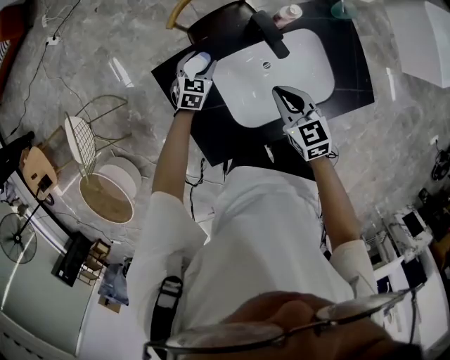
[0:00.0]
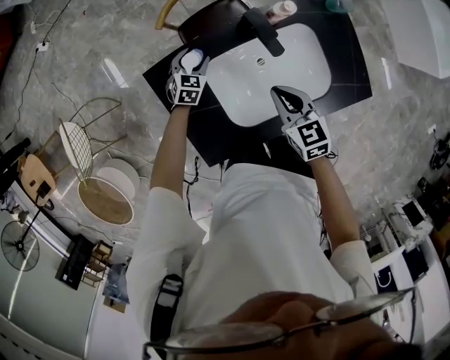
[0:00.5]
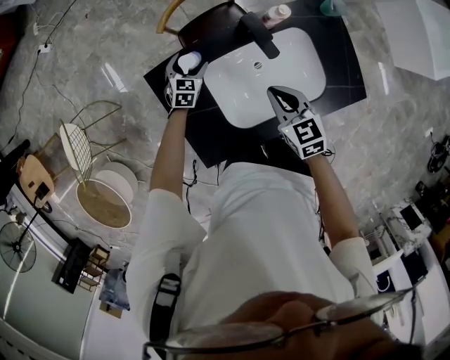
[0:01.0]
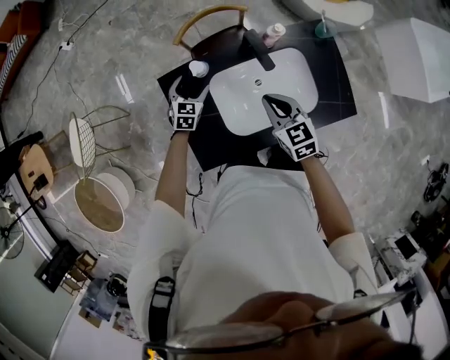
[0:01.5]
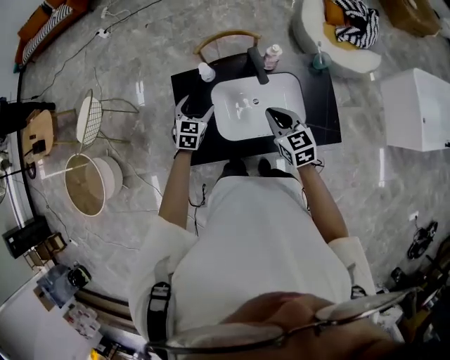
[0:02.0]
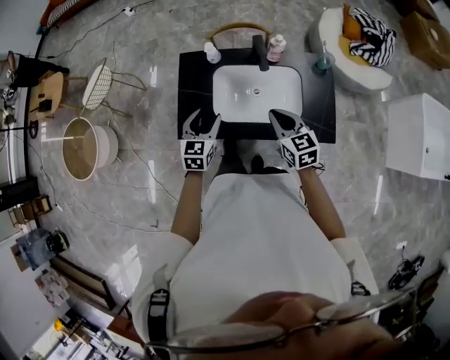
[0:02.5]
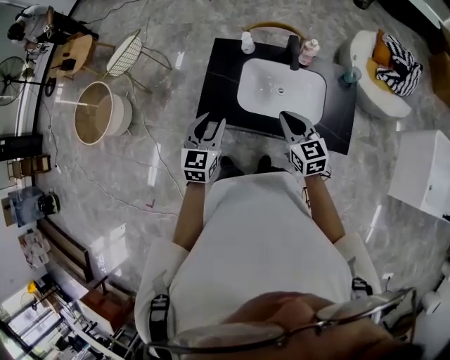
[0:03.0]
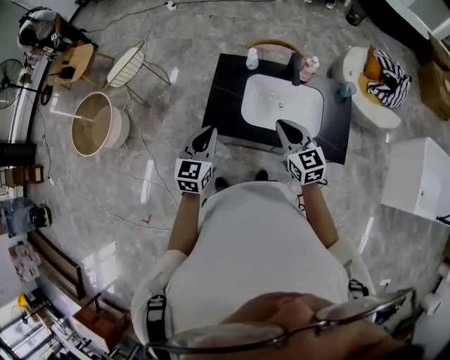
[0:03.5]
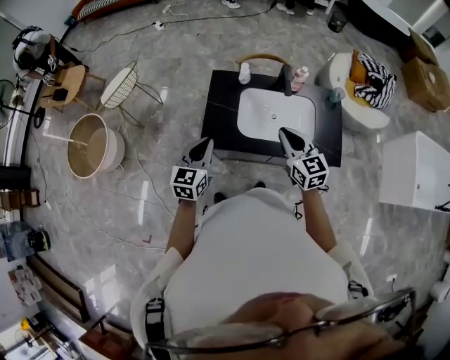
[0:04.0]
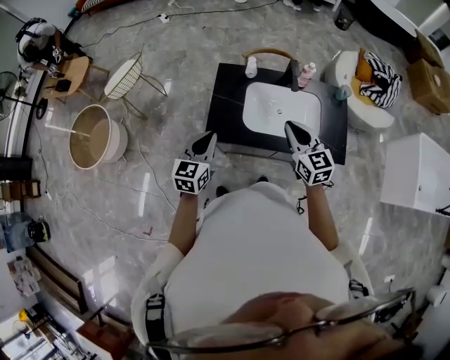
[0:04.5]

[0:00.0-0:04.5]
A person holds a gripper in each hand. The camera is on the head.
0:00.0 to 0:02.0: The left gripper goes some 20 cm upward and backward, and swivels about 20 degrees. The right gripper heads upward and backward, covering roughly 10 cm.
0:02.0 to 0:04.5: The left gripper moves backward, upward and to the left, roughly 35 cm, swivels approximately 30 degrees, and closes up. The right gripper heads backward, upward and to the left, covering approximately 20 cm.

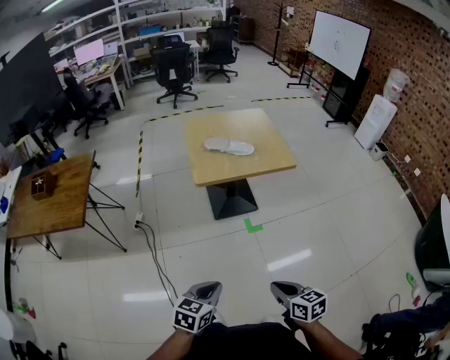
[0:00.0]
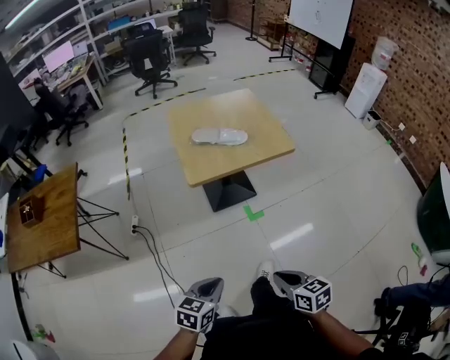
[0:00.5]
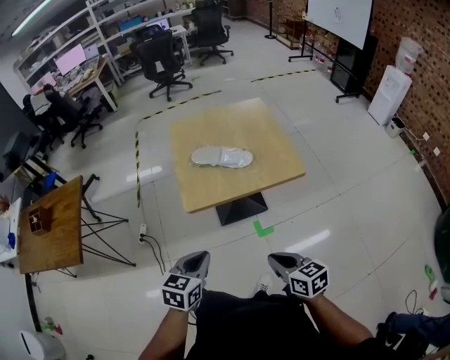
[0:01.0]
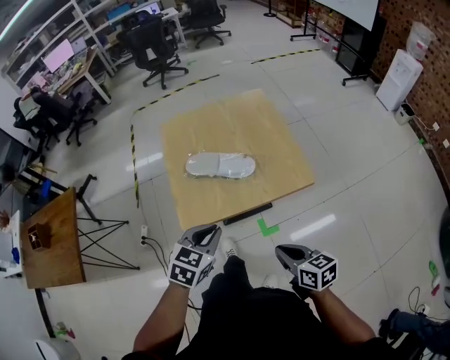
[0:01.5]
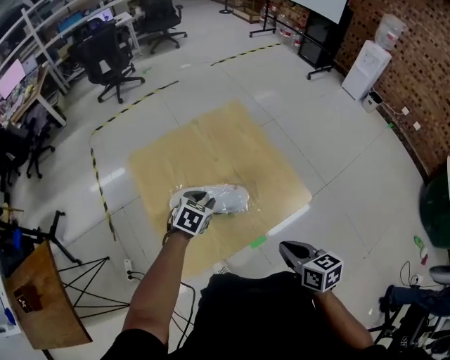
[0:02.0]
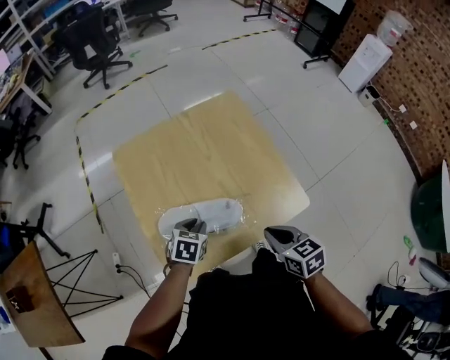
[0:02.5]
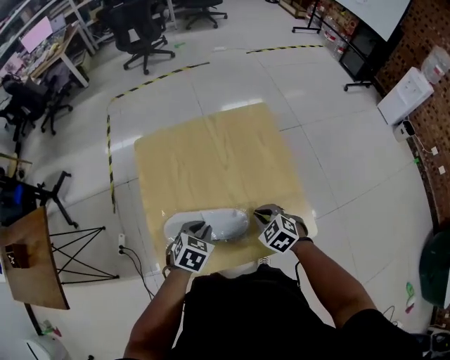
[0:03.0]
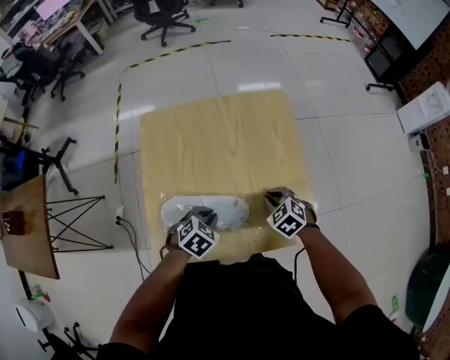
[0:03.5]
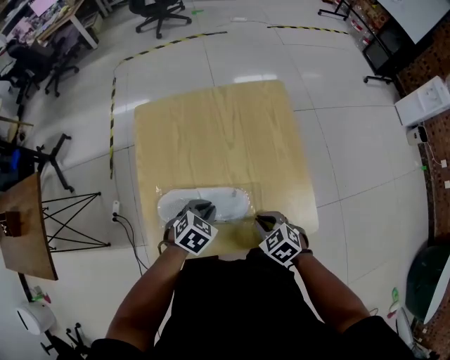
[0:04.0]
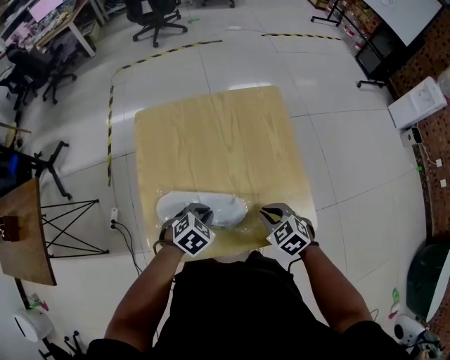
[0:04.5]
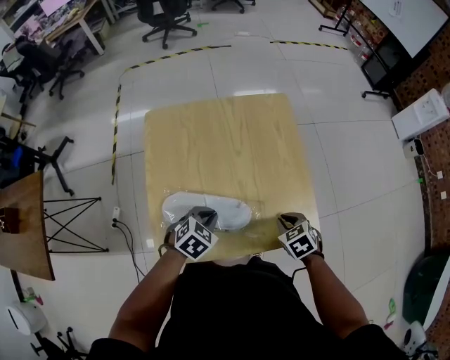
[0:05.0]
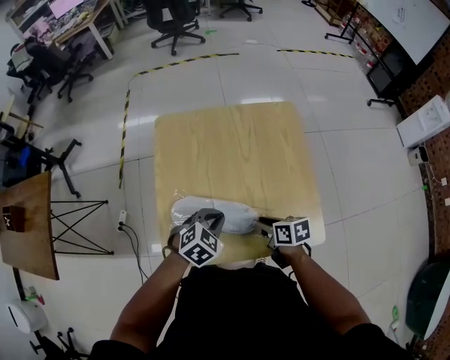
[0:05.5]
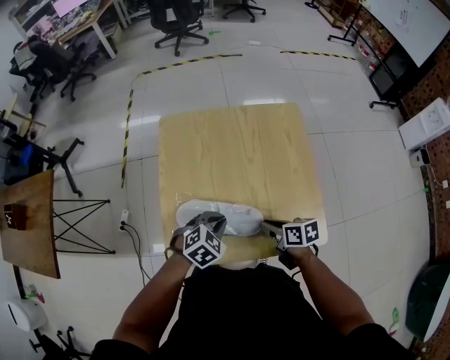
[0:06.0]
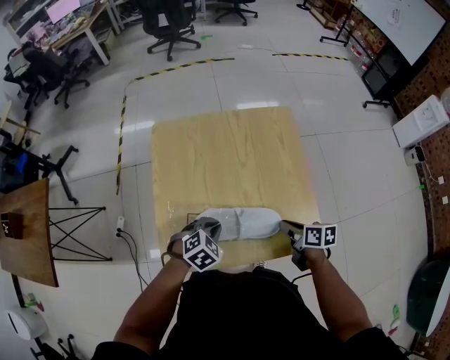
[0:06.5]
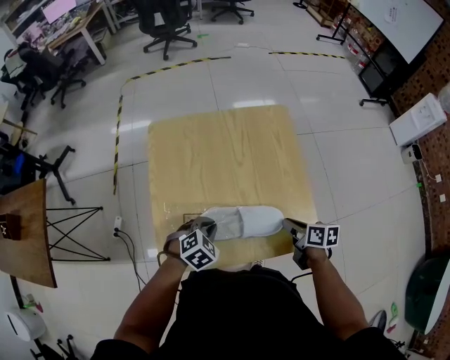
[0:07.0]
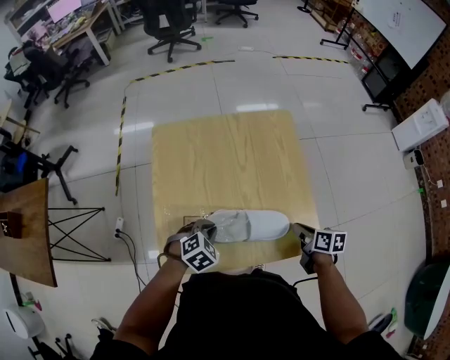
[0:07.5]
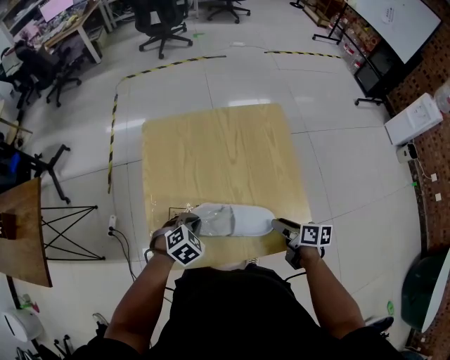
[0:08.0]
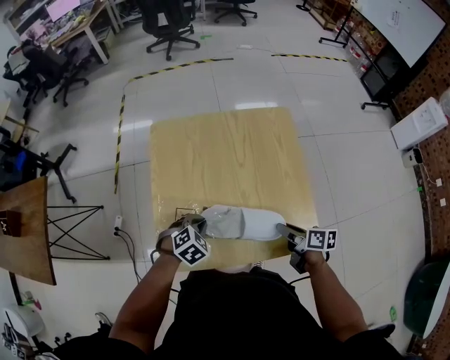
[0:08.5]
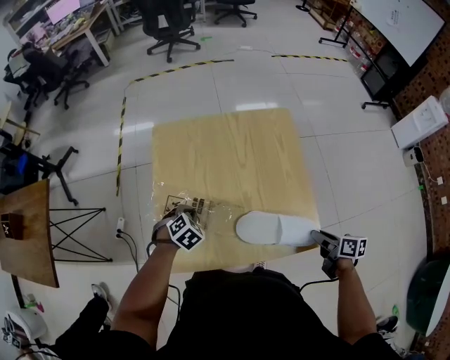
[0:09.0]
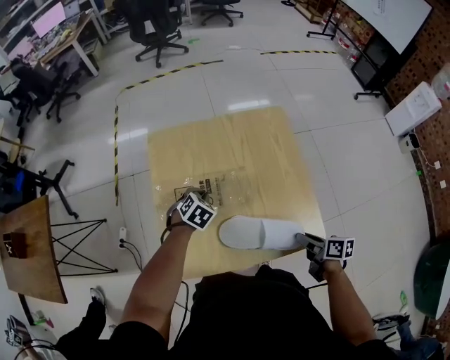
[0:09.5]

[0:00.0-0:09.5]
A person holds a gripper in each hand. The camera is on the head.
0:00.0 to 0:02.0: The pair of grippers is taken forward, roughly 60 cm. The left gripper changes its angle by some 30 degrees, and opens its fingers.
0:02.0 to 0:04.0: The left gripper moves downward, approximately 5 cm. Meanwhile the right gripper moves downward and forward, about 20 cm, and rolls counterclockwise, seen from behind, by some 50 degrees.
0:04.0 to 0:05.5: The right gripper reaches roughly 5 cm to the right, then returns, twists about 50 degrees clockwise, seen from behind, and opens its fingers. The left gripper moves upward, some 5 cm.
0:05.5 to 0:07.5: The left gripper moves some 5 cm, while the right gripper goes approximately 15 cm to the right, and closes up.
0:07.5 to 0:09.5: The right gripper swings left and right, approximately 10 cm each way, with 2 reversals, and opens. The left gripper heads forward, covering some 15 cm.

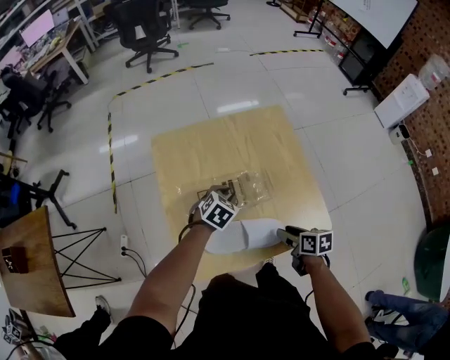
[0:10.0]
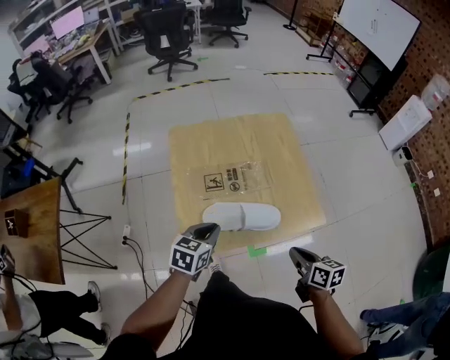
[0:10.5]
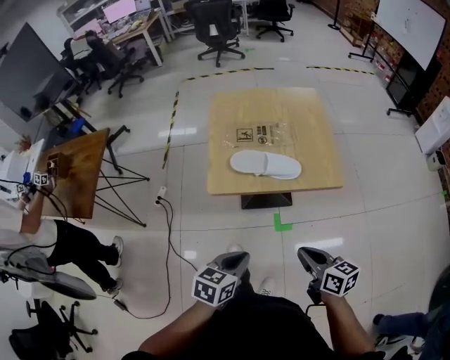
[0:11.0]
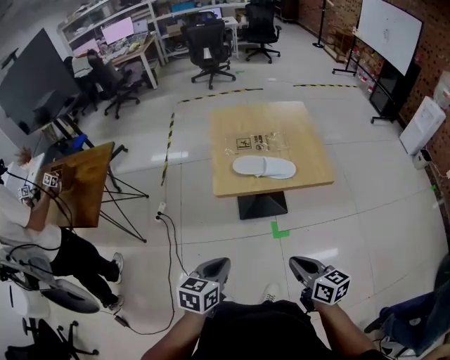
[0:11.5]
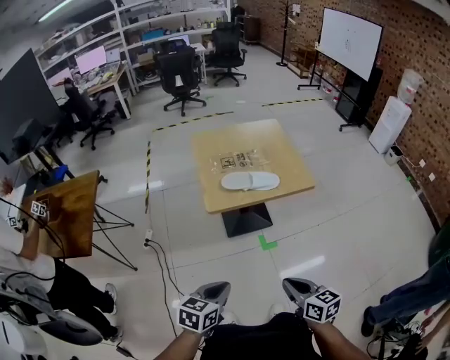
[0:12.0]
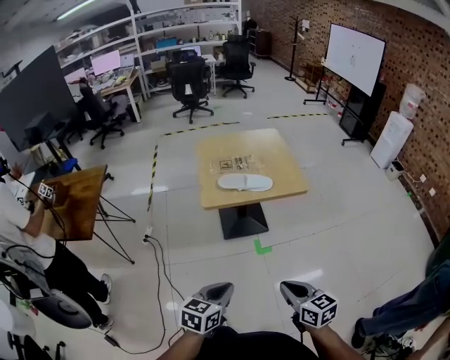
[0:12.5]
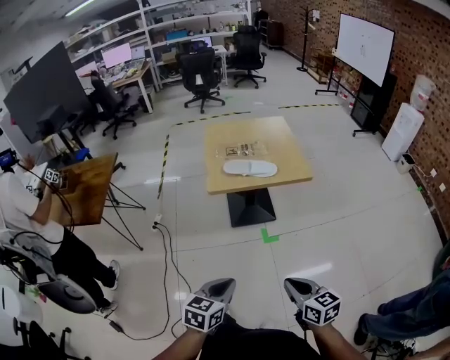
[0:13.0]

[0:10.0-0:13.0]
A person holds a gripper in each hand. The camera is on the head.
0:10.0 to 0:11.5: Both grippers are carried backward, about 50 cm. The right gripper goes approximately 20 cm upward, changes its angle by about 30 degrees, and closes up. The left gripper turns by about 40 degrees.
0:11.5 to 0:13.0: Both grippers travel together backward, some 20 cm.

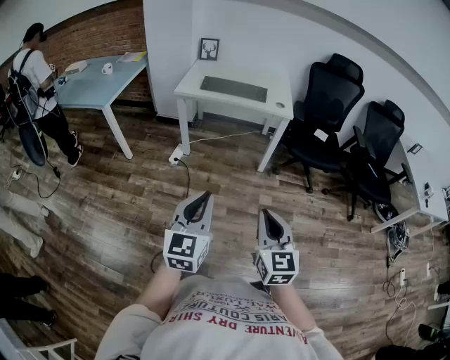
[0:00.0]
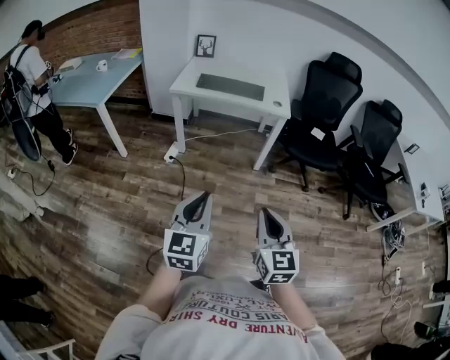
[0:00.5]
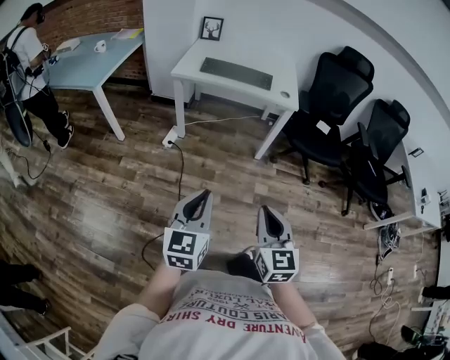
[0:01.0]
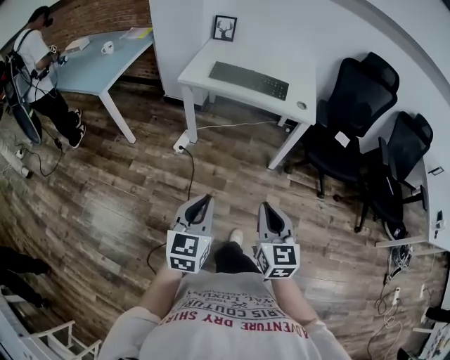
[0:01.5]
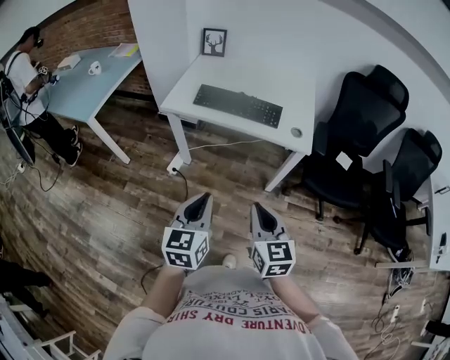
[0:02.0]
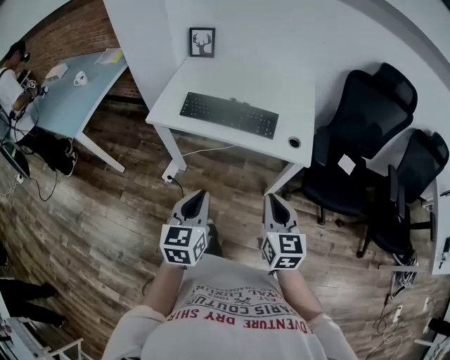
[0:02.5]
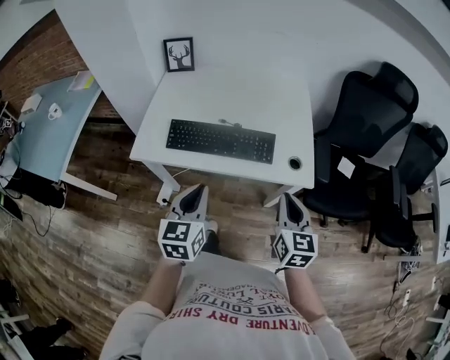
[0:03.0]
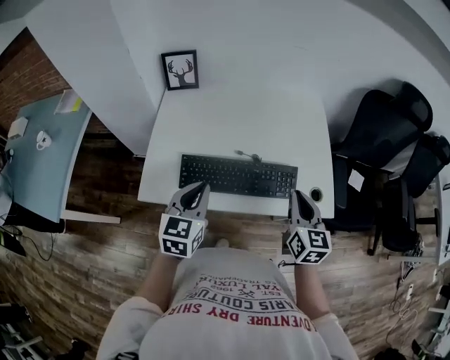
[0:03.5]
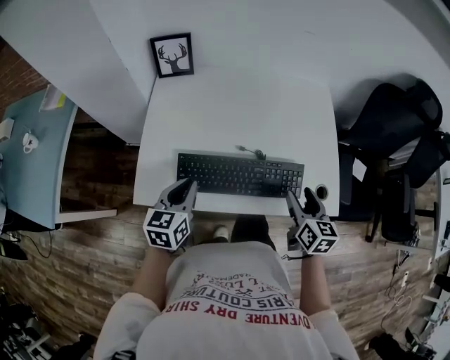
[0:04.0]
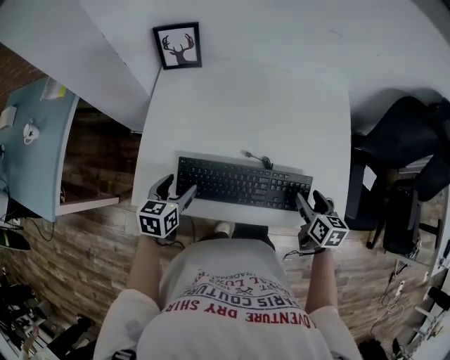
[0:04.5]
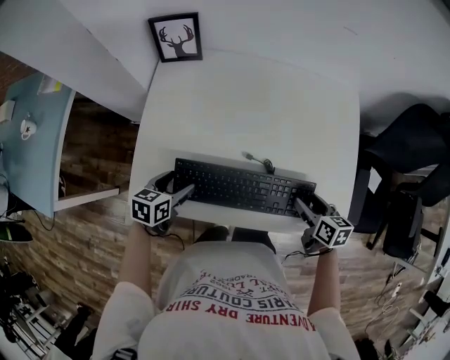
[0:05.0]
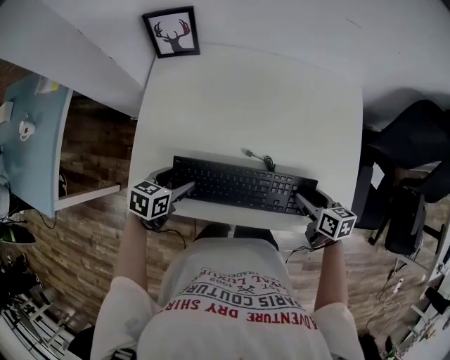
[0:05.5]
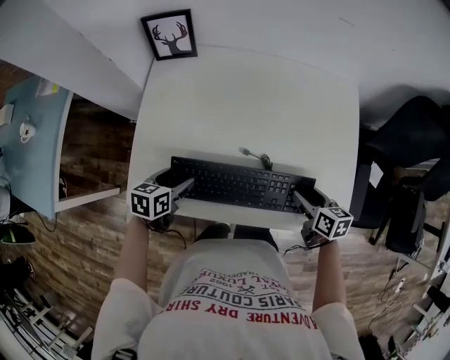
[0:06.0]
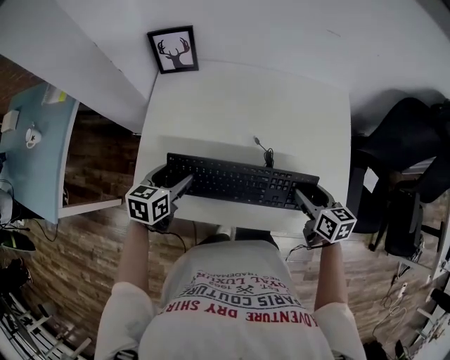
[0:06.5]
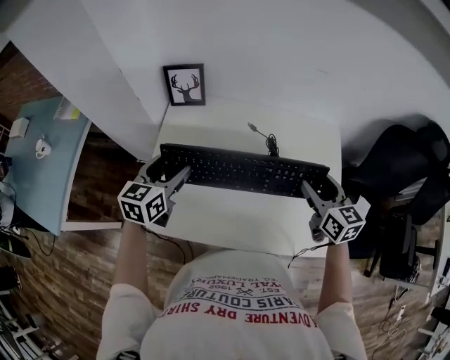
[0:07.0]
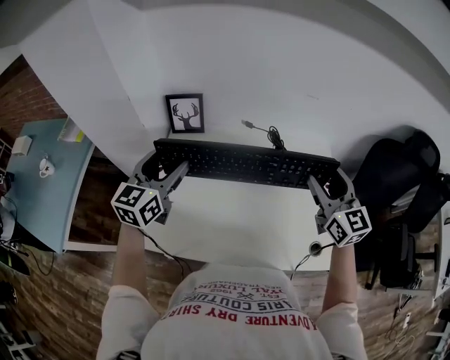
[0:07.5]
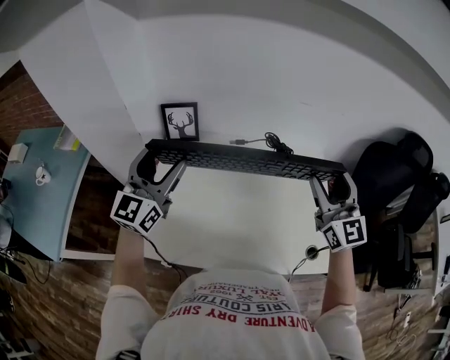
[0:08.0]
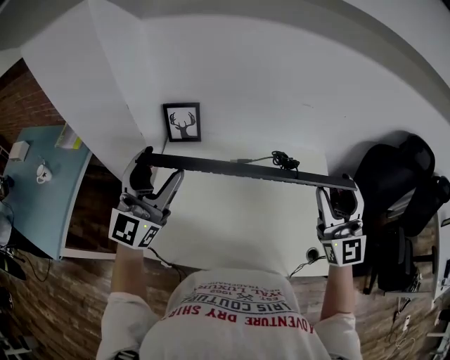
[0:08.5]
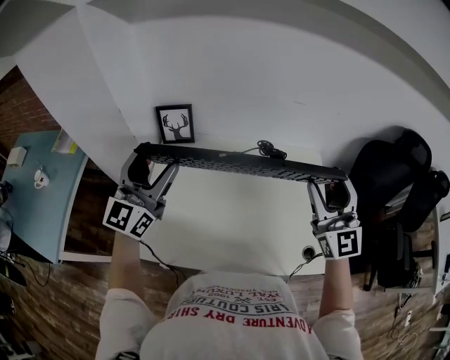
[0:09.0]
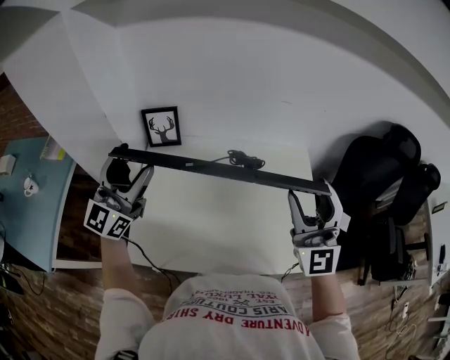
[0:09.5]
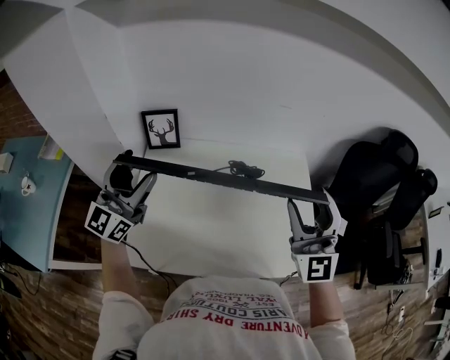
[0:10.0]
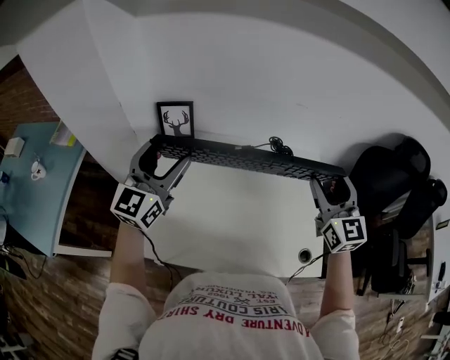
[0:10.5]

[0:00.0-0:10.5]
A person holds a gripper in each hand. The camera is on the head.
0:00.0 to 0:02.0: Both grippers move forward, some 40 cm.
0:02.0 to 0:04.0: The two grippers travel together, forward, approximately 50 cm. The left gripper swivels roughly 20 degrees. The right gripper turns by approximately 30 degrees, and opens.
0:04.0 to 0:06.5: The left gripper goes roughly 10 cm forward and downward, and opens its fingers; the right gripper goes roughly 10 cm forward, and rotates roughly 20 degrees.
0:06.5 to 0:08.5: The grippers both shift upward by roughly 35 cm. The right gripper angles its fingers upward, by roughly 50 degrees. The left gripper tips its fingers upward by some 60 degrees.
0:08.5 to 0:10.5: The two grippers go roughly 5 cm forward. The right gripper turns by approximately 20 degrees.
